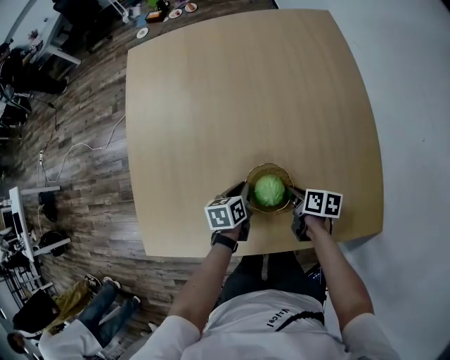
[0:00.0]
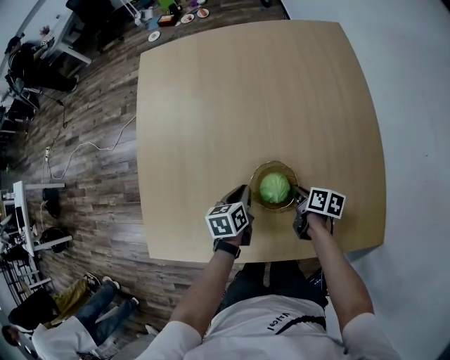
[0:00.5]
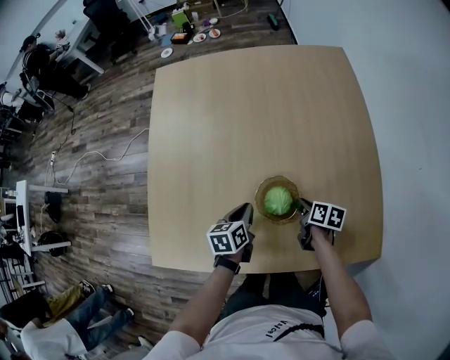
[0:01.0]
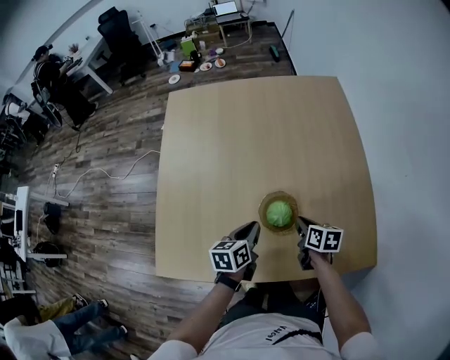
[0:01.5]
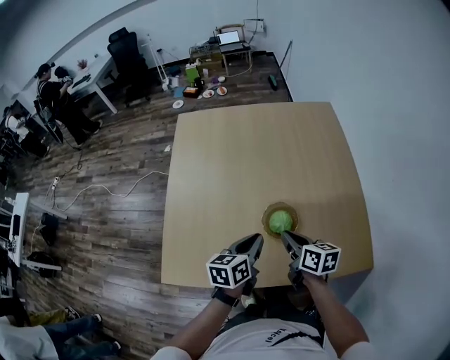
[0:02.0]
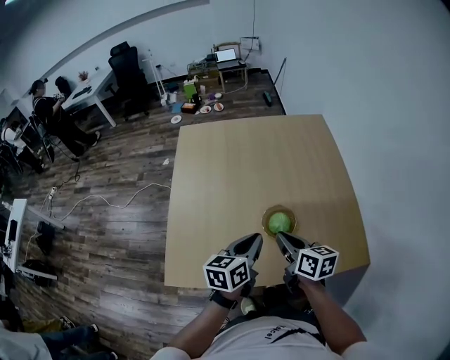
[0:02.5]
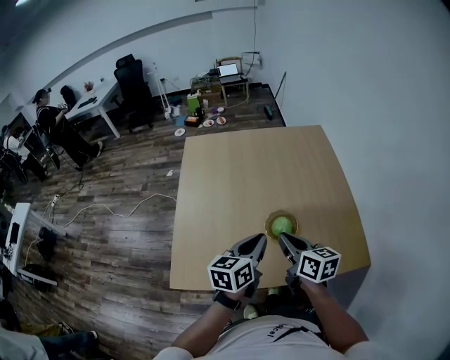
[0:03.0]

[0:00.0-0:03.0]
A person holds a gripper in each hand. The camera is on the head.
0:00.0 to 0:01.5: The right gripper goes approximately 10 cm upward. The left gripper travels upward by roughly 15 cm.
0:01.5 to 0:03.0: The right gripper moves upward, to the left and backward, approximately 30 cm, and changes its angle by about 30 degrees. Meanwhile the left gripper moves upward and backward, some 25 cm, and rotates roughly 20 degrees.

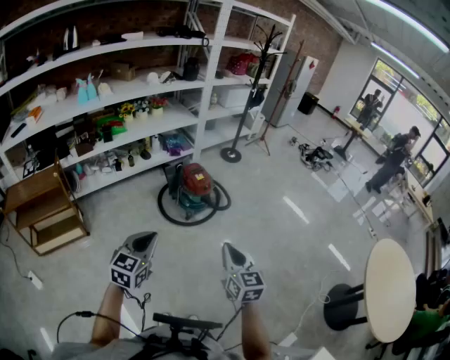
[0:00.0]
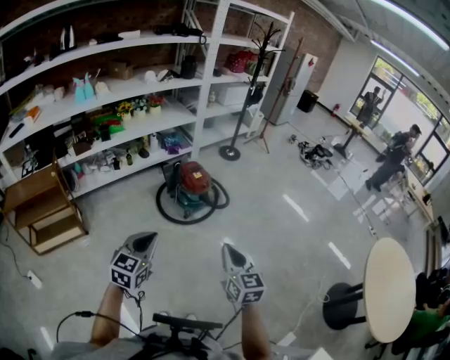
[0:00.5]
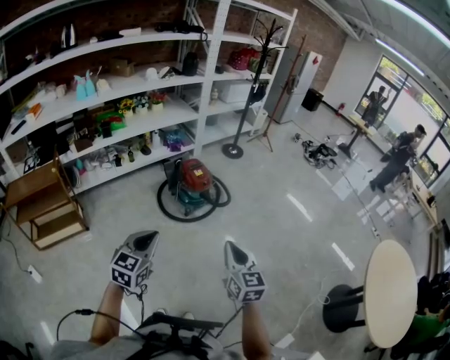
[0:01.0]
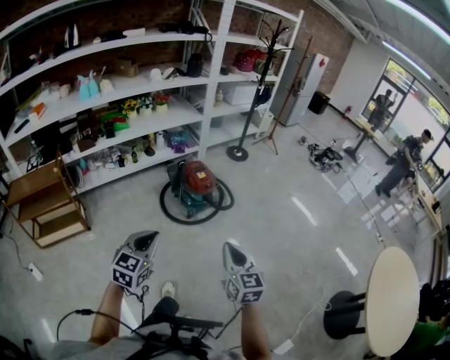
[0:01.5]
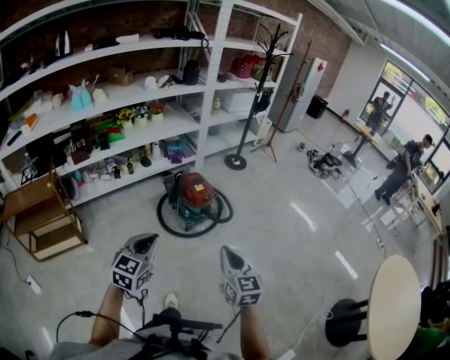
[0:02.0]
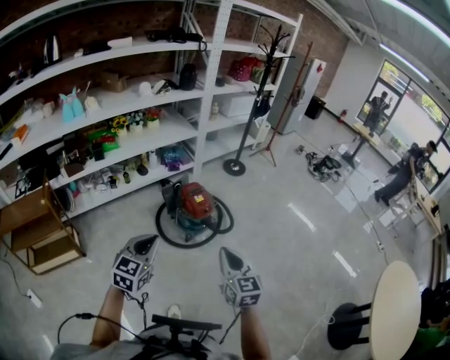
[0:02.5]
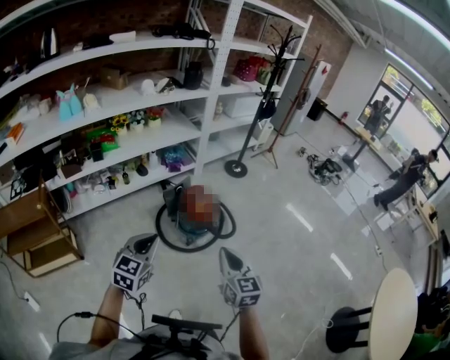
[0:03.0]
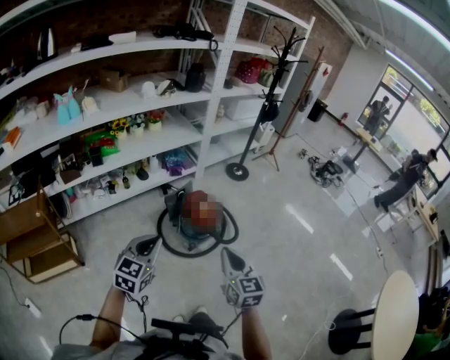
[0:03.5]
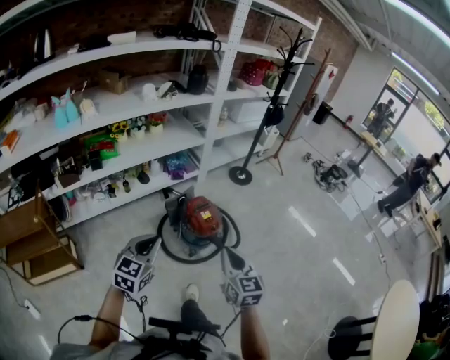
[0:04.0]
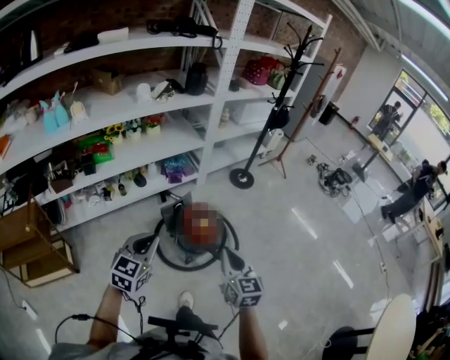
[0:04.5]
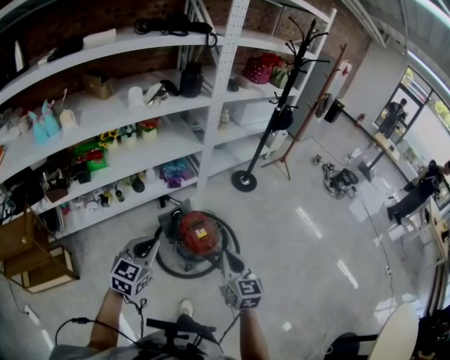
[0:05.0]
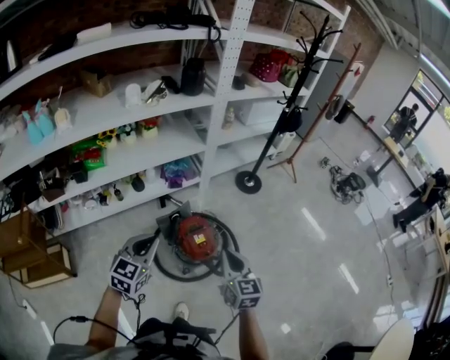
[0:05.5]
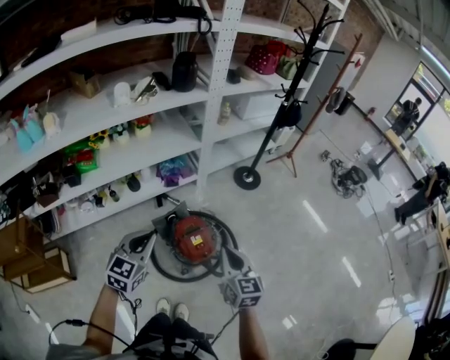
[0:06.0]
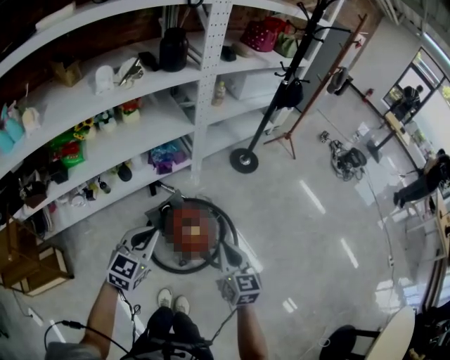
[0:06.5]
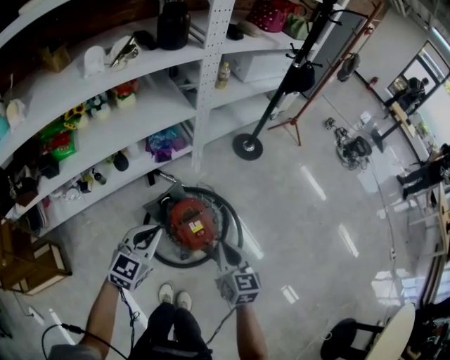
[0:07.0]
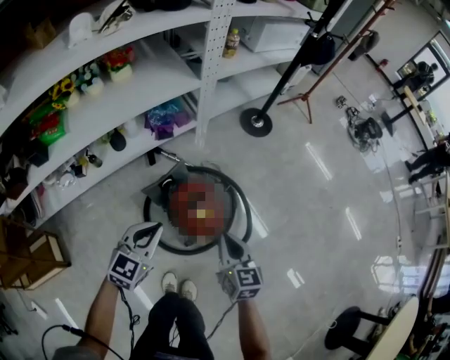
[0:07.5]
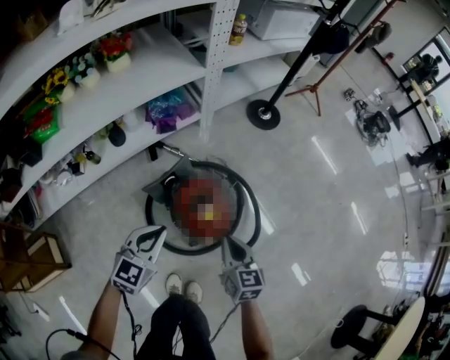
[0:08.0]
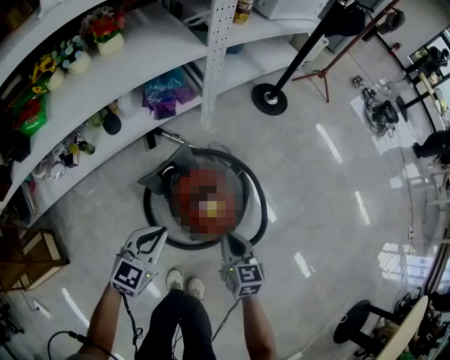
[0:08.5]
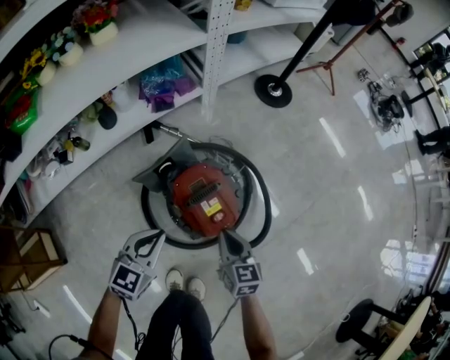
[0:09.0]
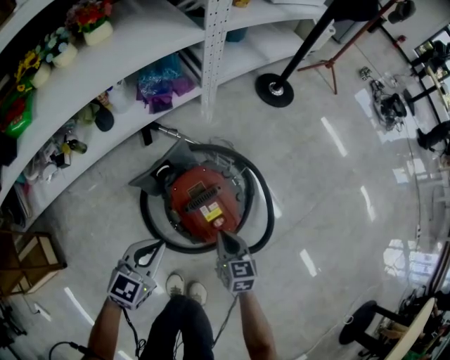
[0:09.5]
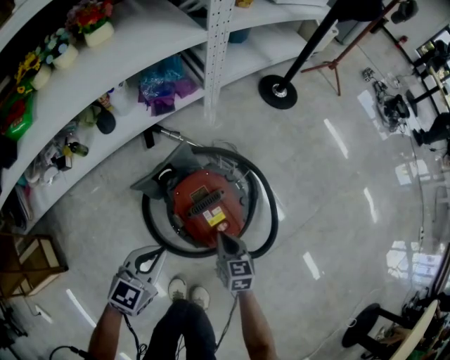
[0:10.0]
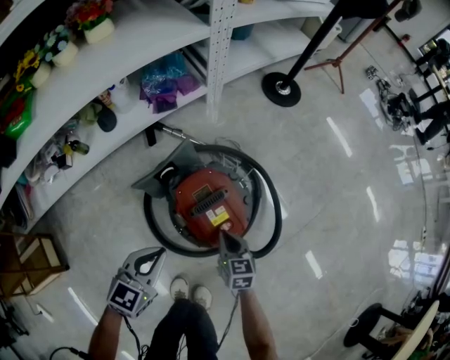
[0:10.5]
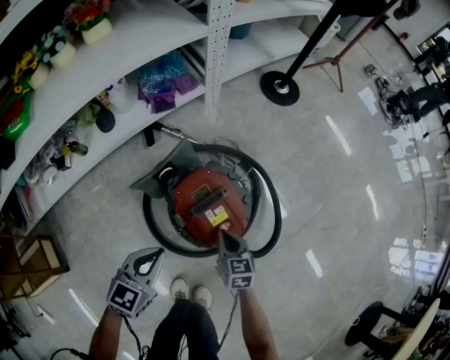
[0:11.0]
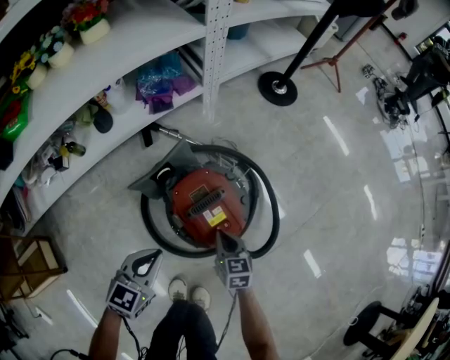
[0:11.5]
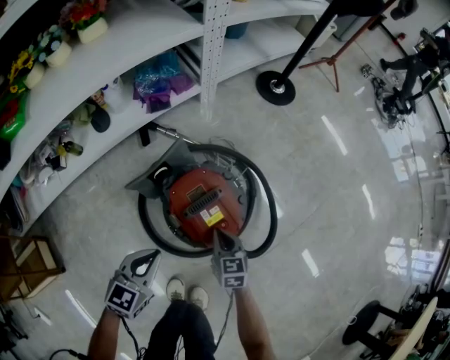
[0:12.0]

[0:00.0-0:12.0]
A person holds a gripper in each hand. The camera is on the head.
0:00.0 to 0:02.0: Both grippers travel together forward, roughly 10 cm.
0:02.0 to 0:04.0: Both grippers travel together forward, approximately 25 cm.
0:04.0 to 0:06.0: The grippers both shift forward by approximately 30 cm.
0:06.0 to 0:08.0: Both grippers travel together downward, roughly 30 cm.
0:08.0 to 0:10.0: The left gripper is displaced downward by roughly 15 cm. Meanwhile the right gripper shifts some 20 cm downward.
0:10.0 to 0:12.0: There are only small adjustments of the grippers.

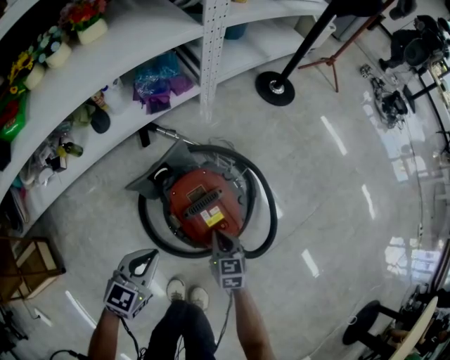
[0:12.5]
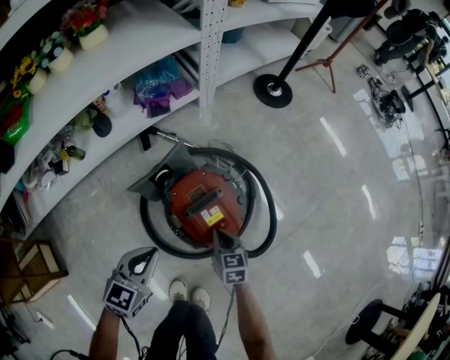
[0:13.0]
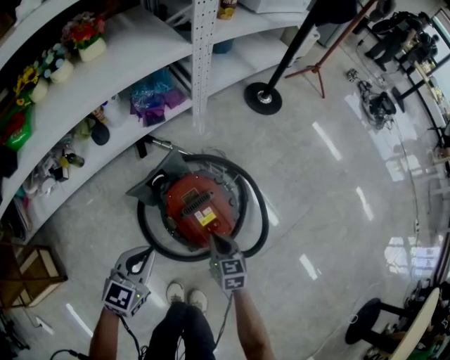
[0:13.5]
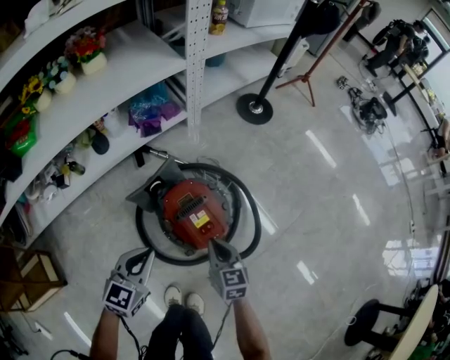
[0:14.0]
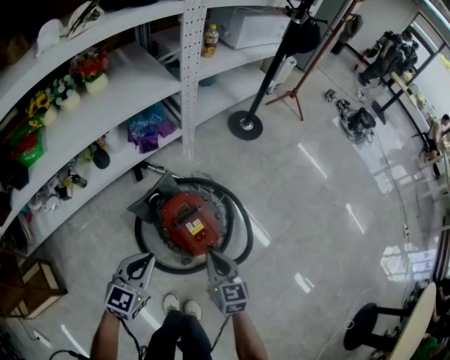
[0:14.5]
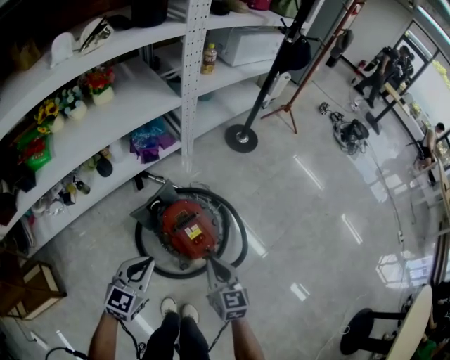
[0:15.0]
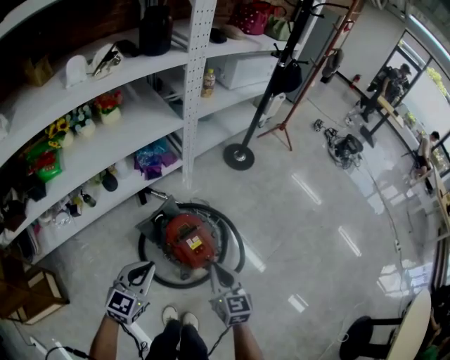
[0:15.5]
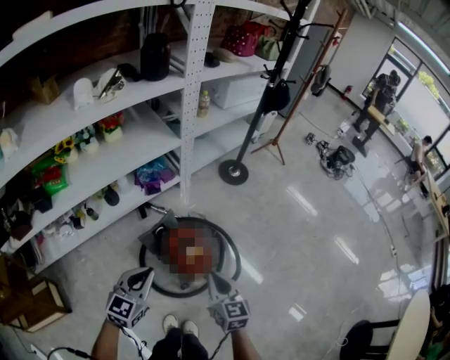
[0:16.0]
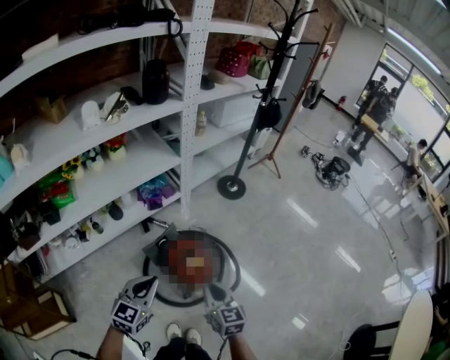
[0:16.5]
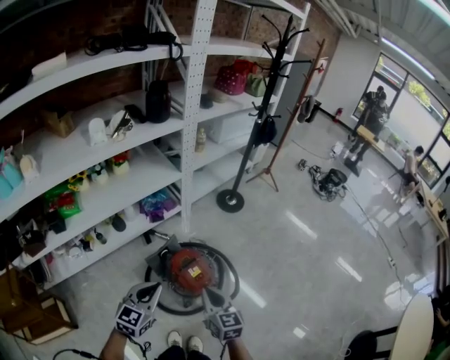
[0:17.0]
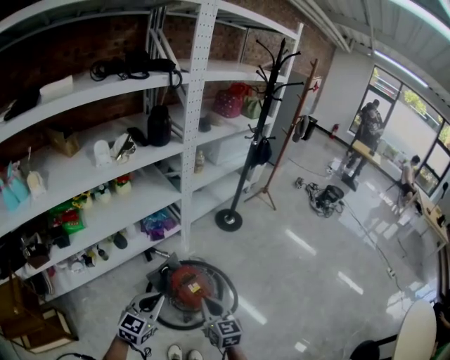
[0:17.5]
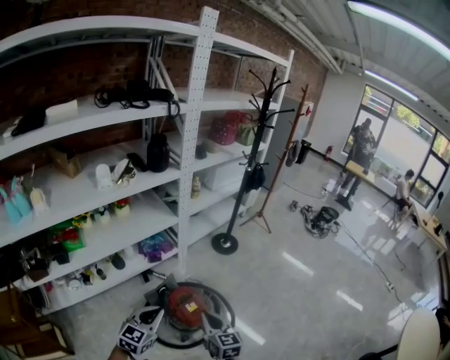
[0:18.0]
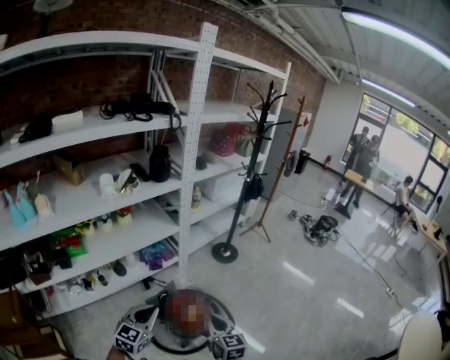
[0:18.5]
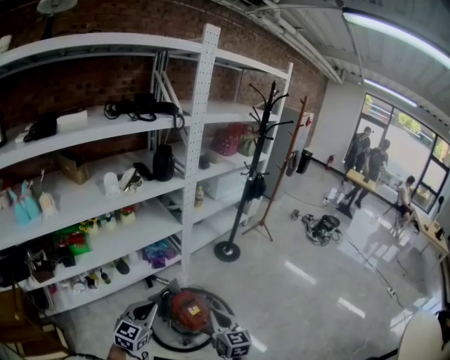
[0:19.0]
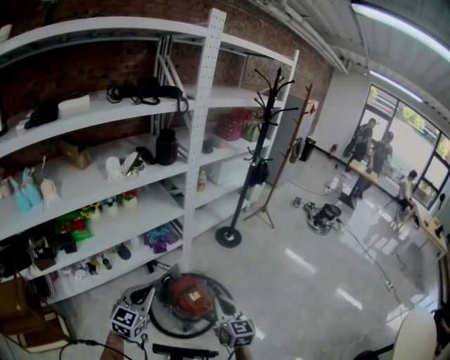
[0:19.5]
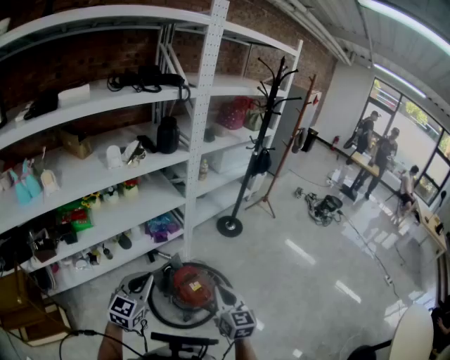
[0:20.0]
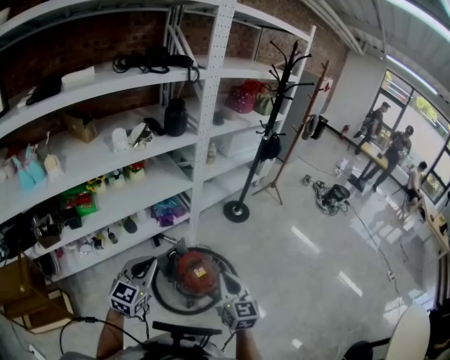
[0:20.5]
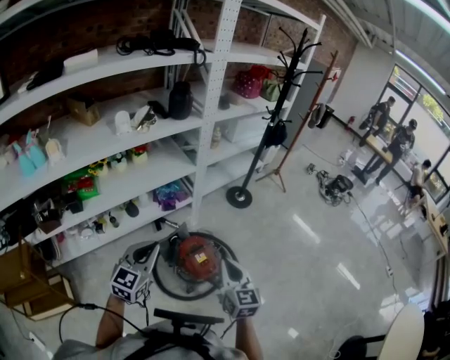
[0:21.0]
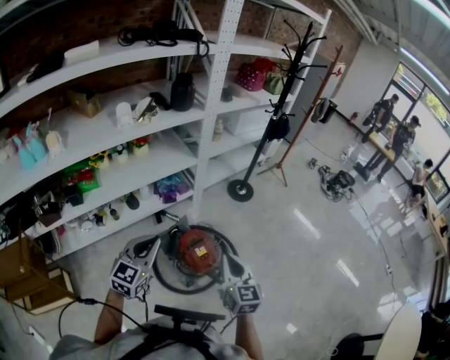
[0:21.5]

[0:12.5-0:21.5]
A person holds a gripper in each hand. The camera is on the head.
0:12.5 to 0:14.5: The left gripper goes roughly 15 cm upward. Meanwhile the right gripper travels upward by roughly 20 cm.
0:14.5 to 0:17.0: Both grippers move upward, approximately 25 cm.
0:17.0 to 0:19.5: The two grippers go some 10 cm upward.
0:19.5 to 0:21.5: There are only small adjustments of the grippers.

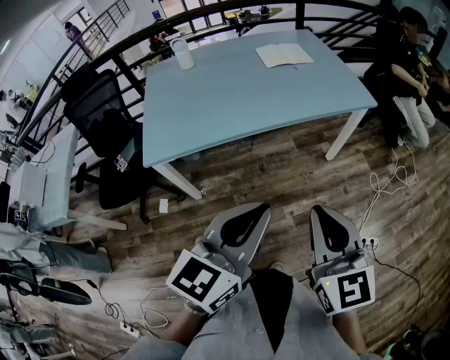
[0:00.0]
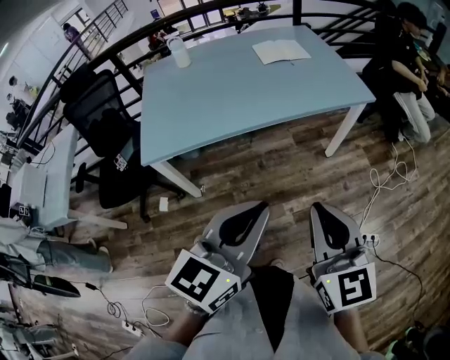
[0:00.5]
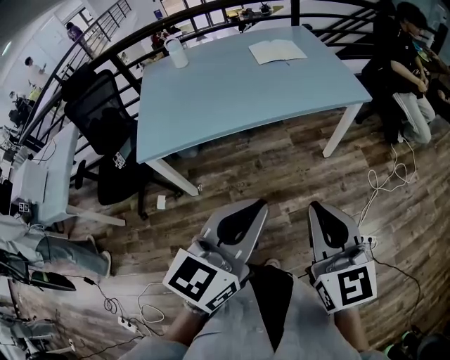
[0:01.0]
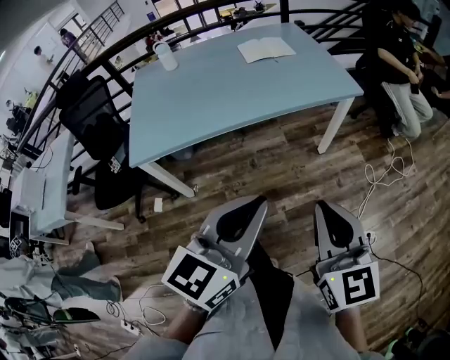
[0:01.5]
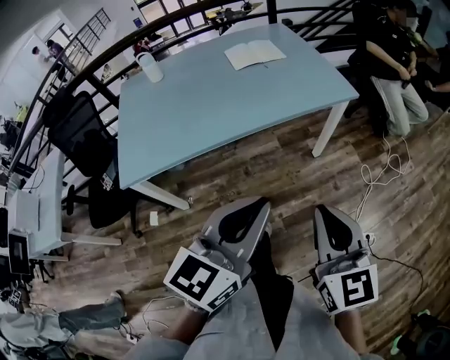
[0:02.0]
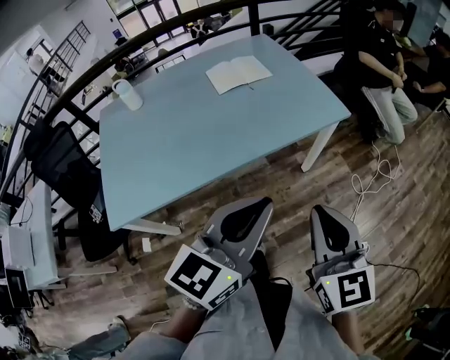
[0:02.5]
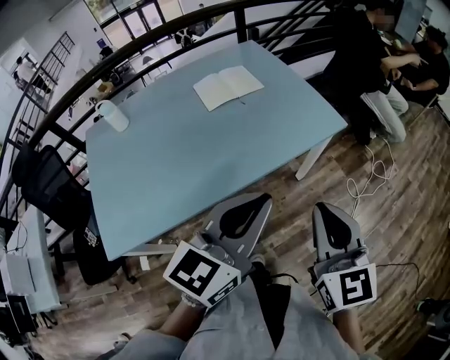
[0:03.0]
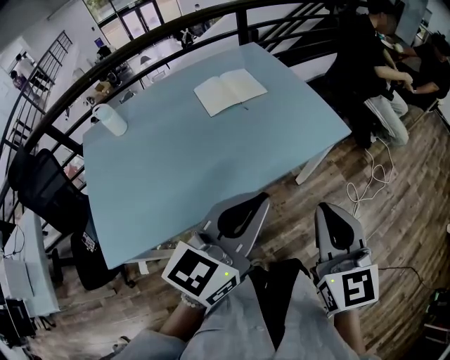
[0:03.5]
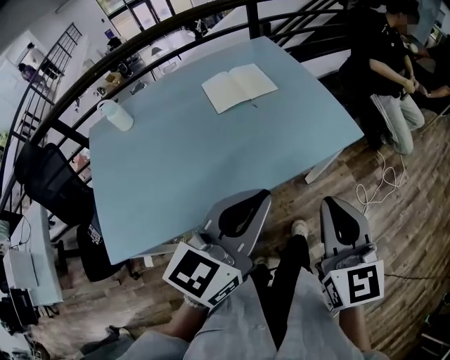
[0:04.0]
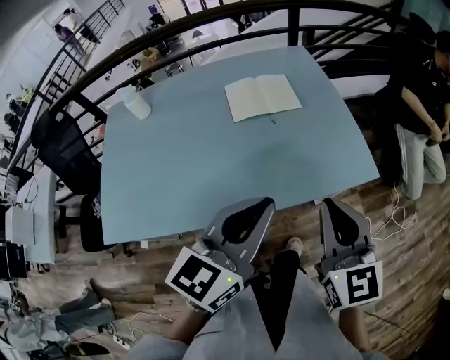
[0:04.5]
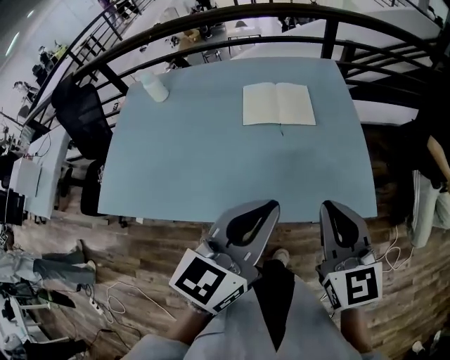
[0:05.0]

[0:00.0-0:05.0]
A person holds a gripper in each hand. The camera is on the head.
0:00.0 to 0:02.5: Both grippers move forward and to the right, about 20 cm.
0:02.5 to 0:05.0: The right gripper shifts by some 35 cm, and changes its angle by approximately 30 degrees; the left gripper moves roughly 30 cm, and swivels some 30 degrees.
